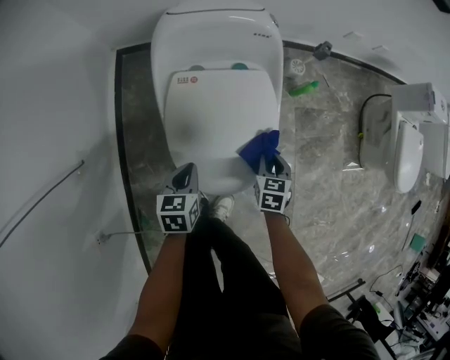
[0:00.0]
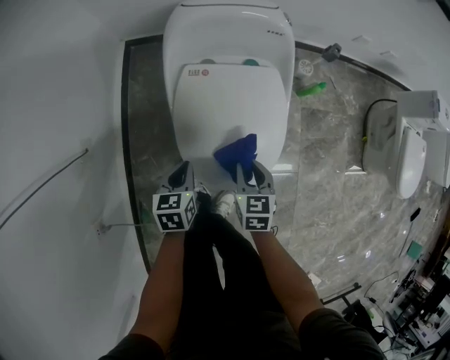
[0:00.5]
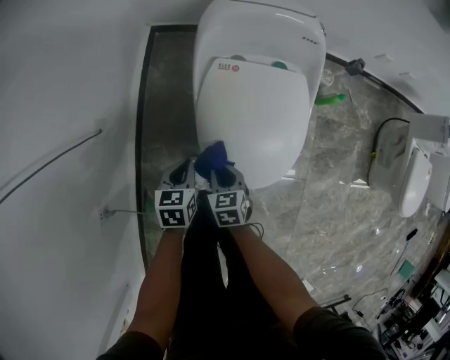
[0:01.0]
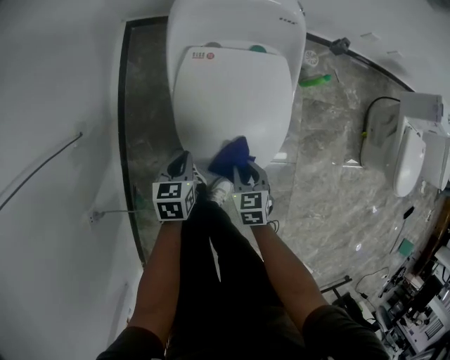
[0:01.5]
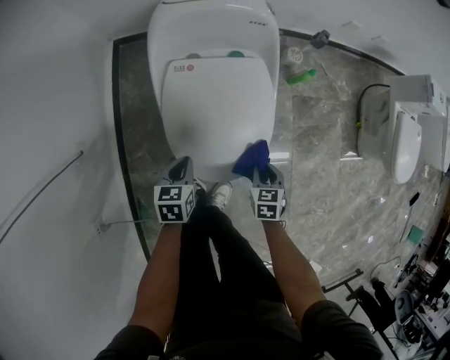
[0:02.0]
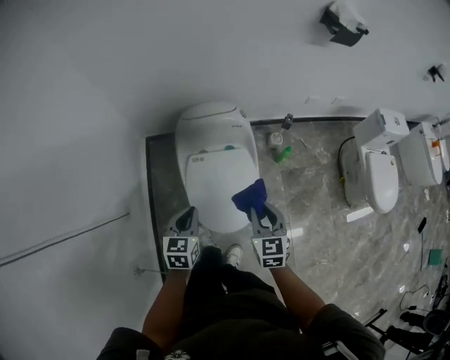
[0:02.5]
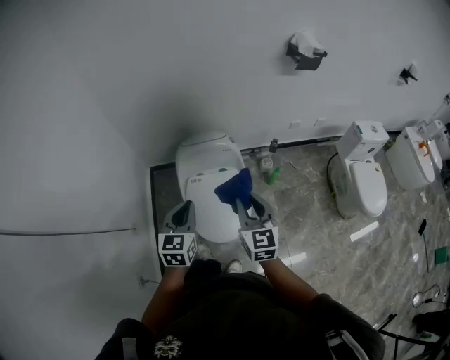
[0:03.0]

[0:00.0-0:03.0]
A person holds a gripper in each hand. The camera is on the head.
0:01.5 to 0:03.0: Both grippers travel together upward, some 50 cm. The left gripper points its fingers roughly 30 degrees further upward. The right gripper tilts its fingers about 40 degrees upward.

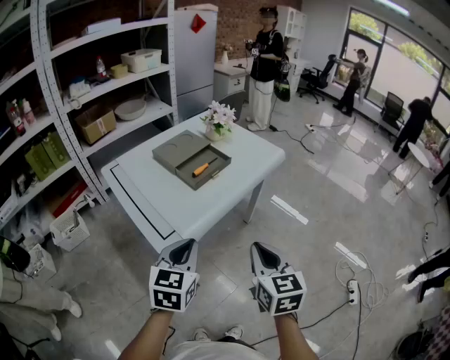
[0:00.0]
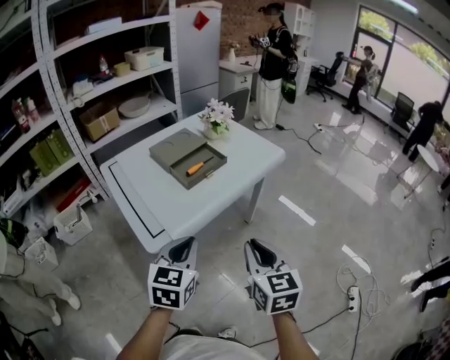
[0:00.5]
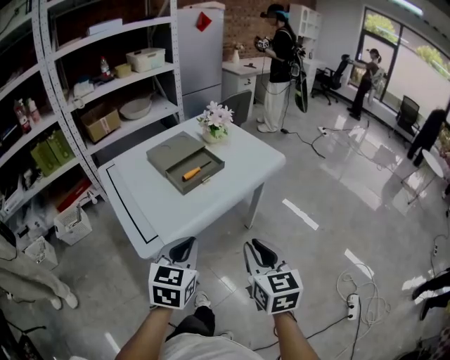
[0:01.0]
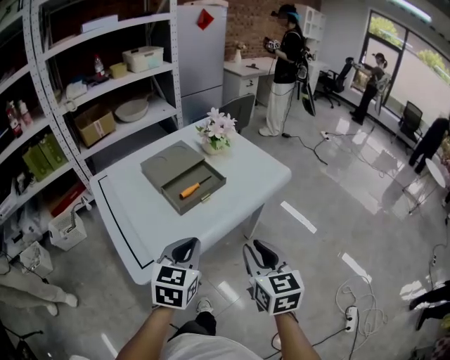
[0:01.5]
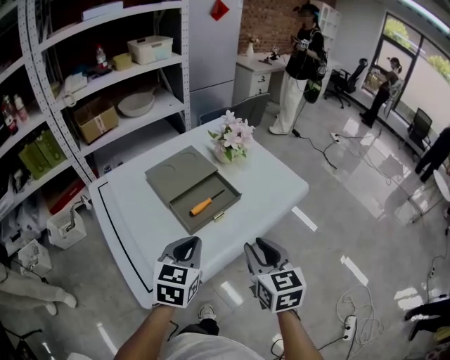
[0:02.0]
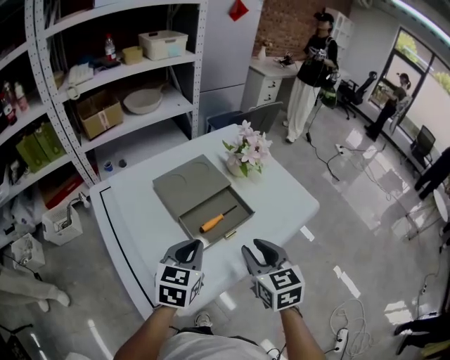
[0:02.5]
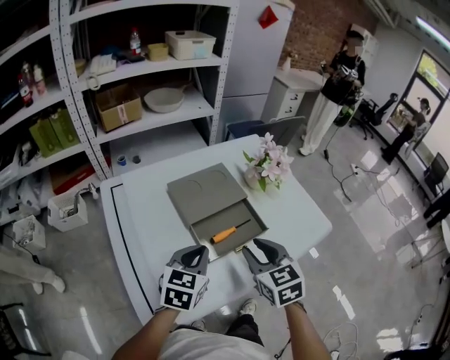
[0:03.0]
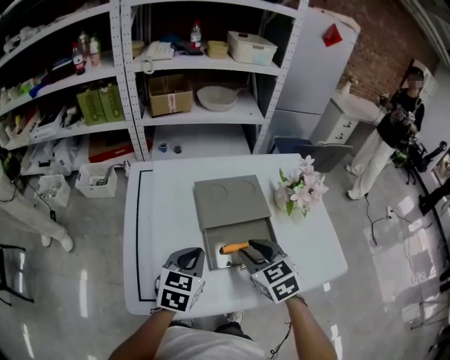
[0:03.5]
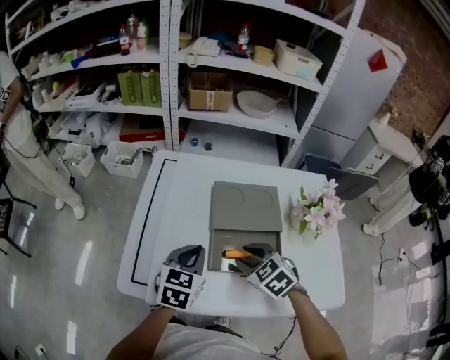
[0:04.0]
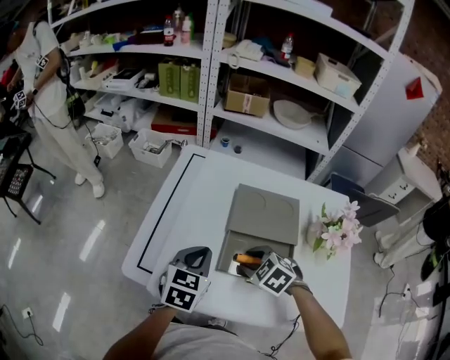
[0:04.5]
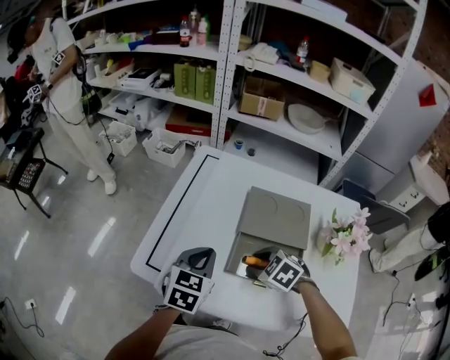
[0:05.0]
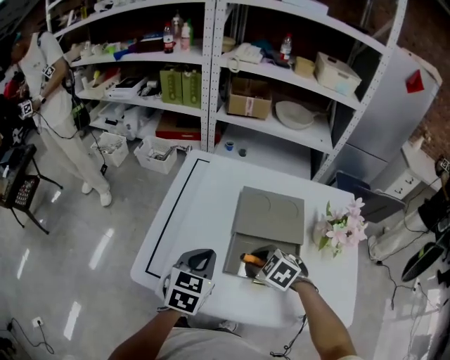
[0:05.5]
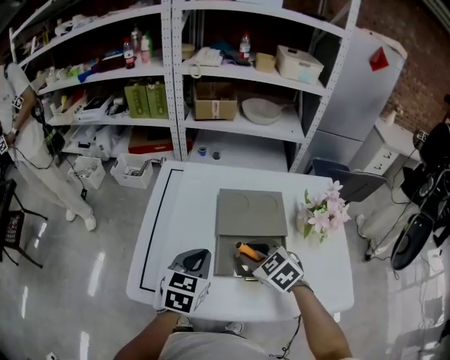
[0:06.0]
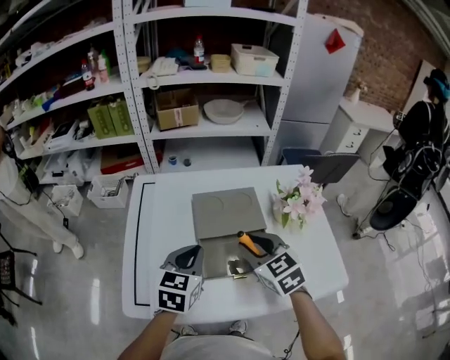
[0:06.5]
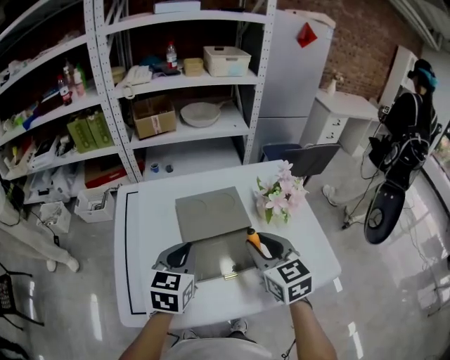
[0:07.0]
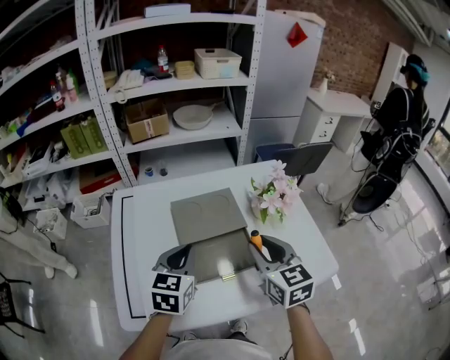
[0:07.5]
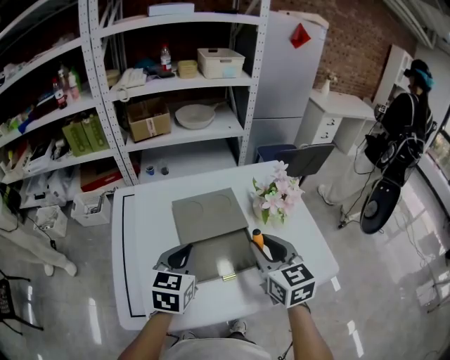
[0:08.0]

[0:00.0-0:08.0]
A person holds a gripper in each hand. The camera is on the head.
0:00.0 to 0:02.0: The grippers both shift forward by some 25 cm. The right gripper opens up.
0:02.0 to 0:04.0: The left gripper moves approximately 15 cm, and changes its angle by about 40 degrees; the right gripper moves roughly 25 cm, and swivels approximately 80 degrees.
0:04.0 to 0:06.0: The right gripper goes downward and returns, approximately 5 cm each way.
0:06.0 to 0:08.0: The left gripper ends up roughly 5 cm from where it was. Meanwhile the right gripper changes place by roughly 15 cm, and changes its angle by roughly 50 degrees.

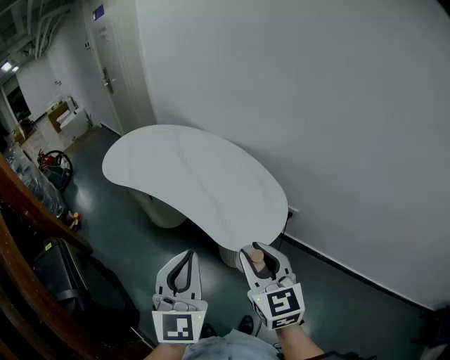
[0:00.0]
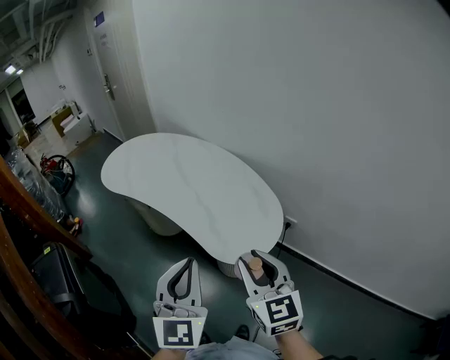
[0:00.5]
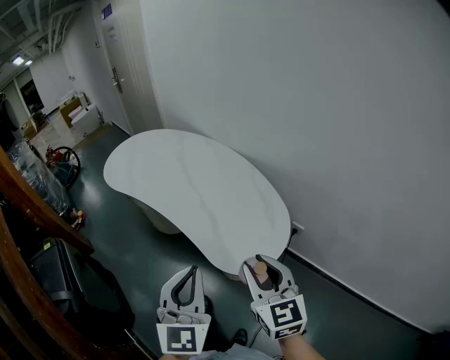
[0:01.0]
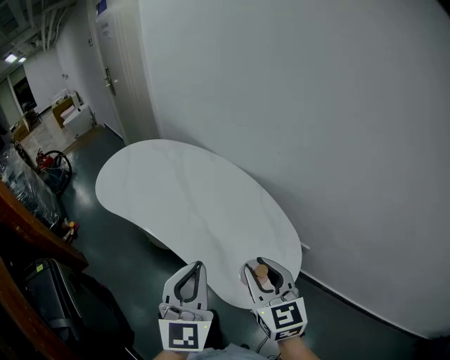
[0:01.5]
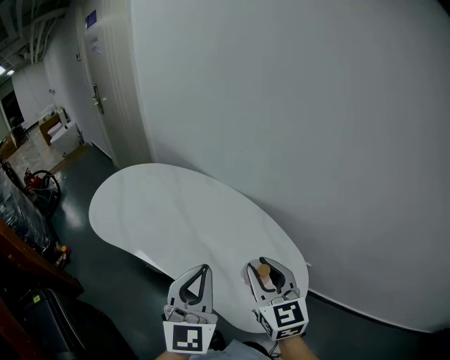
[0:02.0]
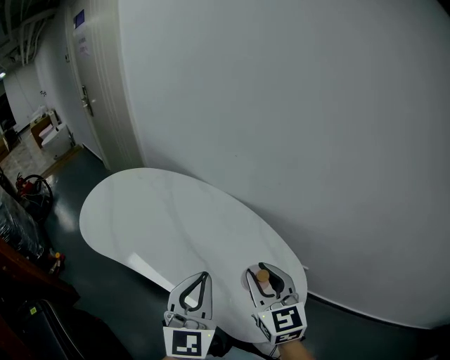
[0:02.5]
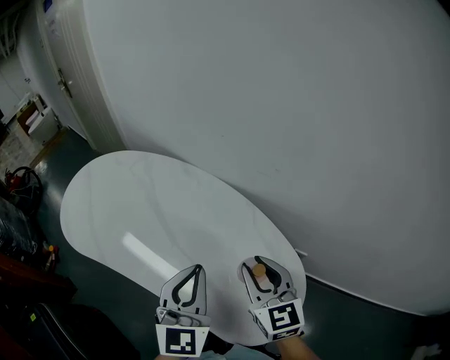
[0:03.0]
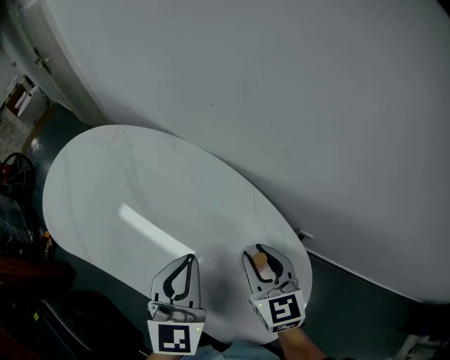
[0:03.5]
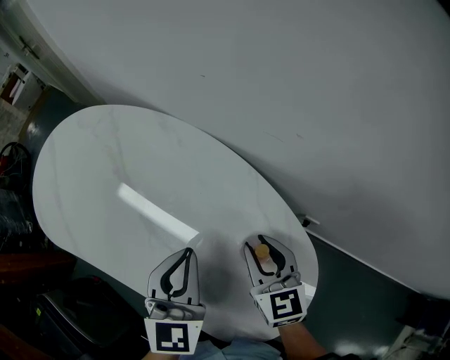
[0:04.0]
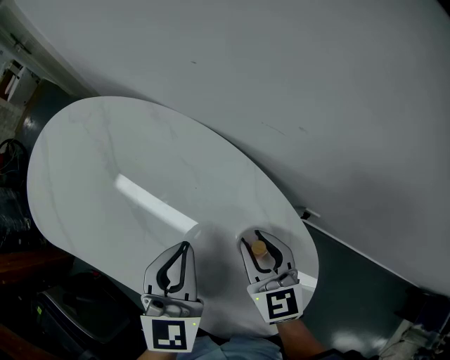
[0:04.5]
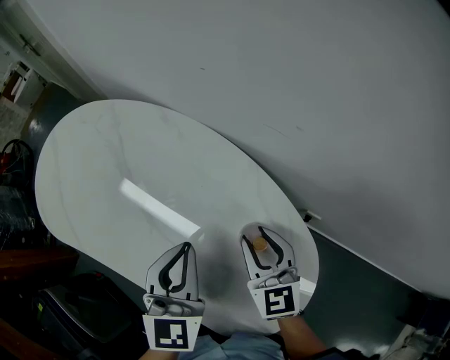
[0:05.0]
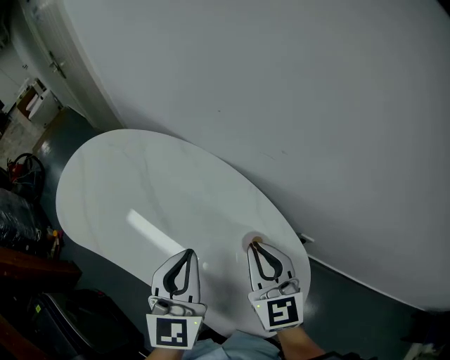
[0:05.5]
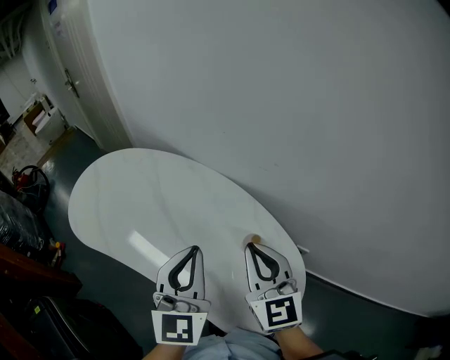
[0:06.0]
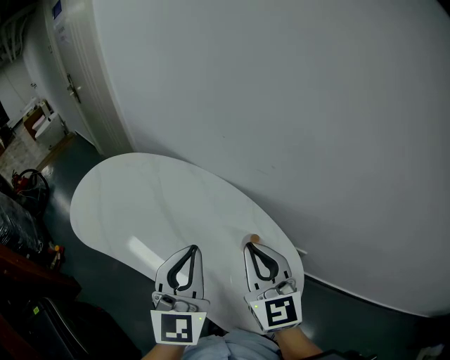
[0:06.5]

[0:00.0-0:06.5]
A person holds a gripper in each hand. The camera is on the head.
0:00.0 to 0:02.0: The two grippers go approximately 20 cm forward.
0:02.0 to 0:04.5: Both grippers move downward and forward, about 15 cm. The left gripper tilts its fingers roughly 30 degrees downward.
0:04.5 to 0:06.5: Both grippers travel together upward, some 15 cm. The left gripper rotates about 30 degrees; the right gripper swivels roughly 20 degrees, and closes.

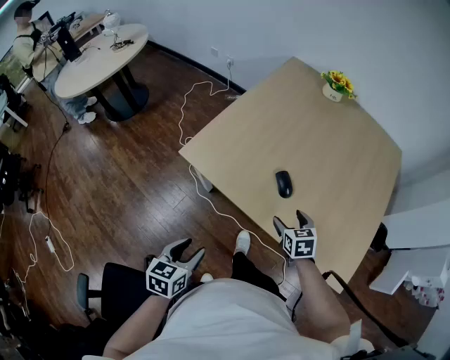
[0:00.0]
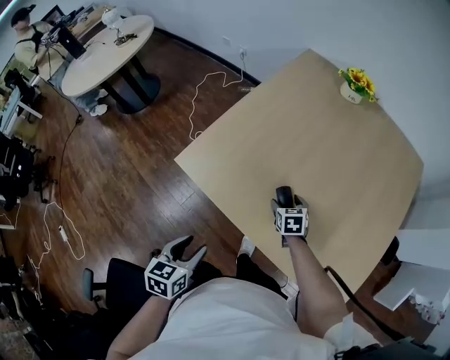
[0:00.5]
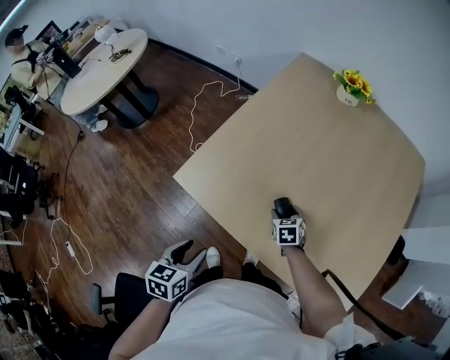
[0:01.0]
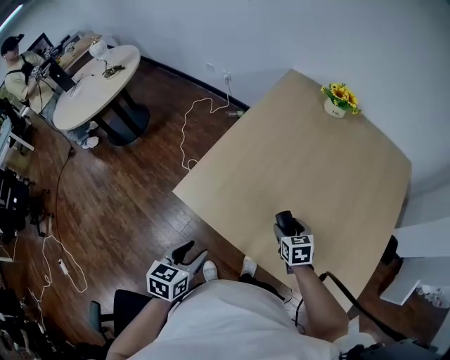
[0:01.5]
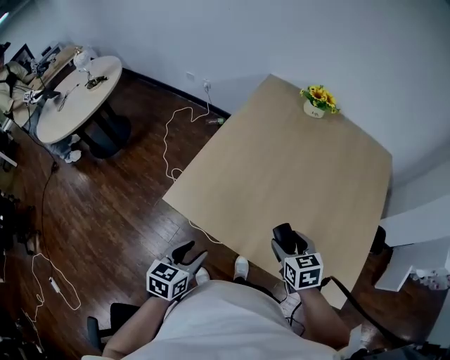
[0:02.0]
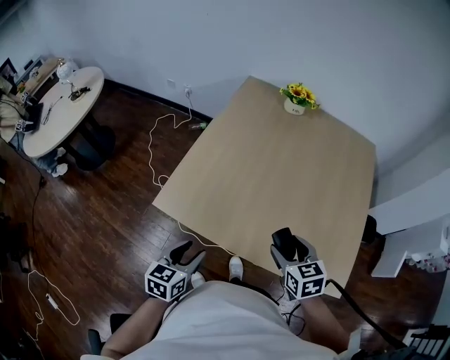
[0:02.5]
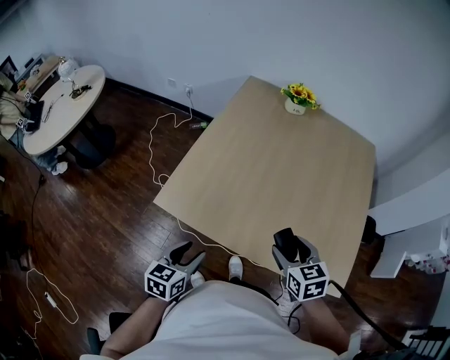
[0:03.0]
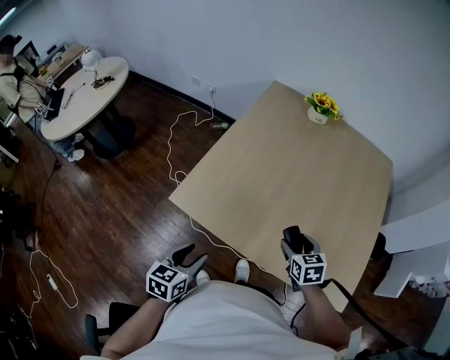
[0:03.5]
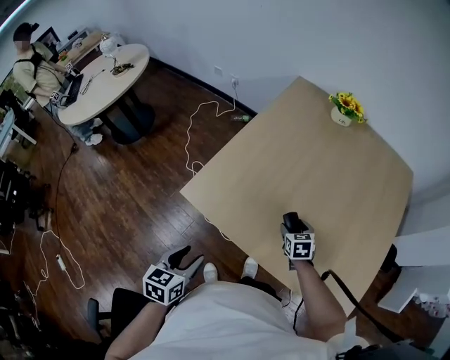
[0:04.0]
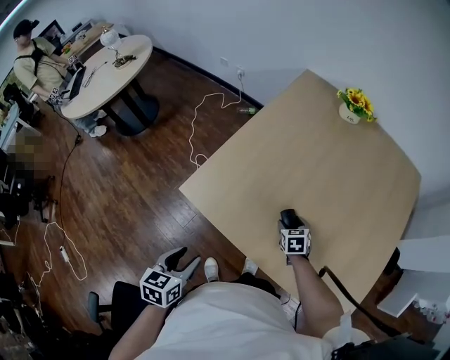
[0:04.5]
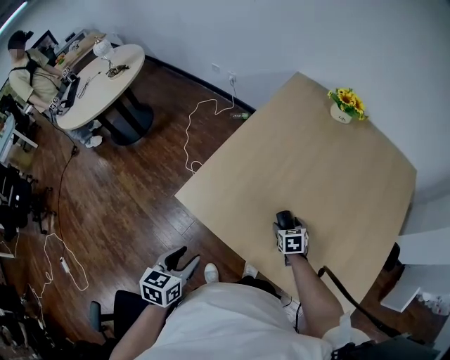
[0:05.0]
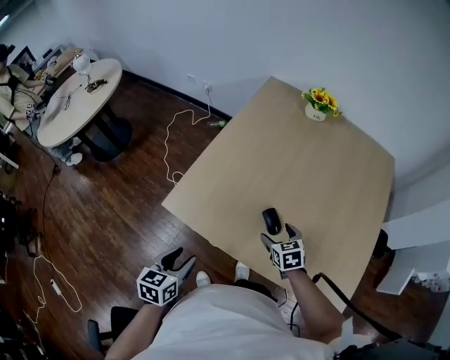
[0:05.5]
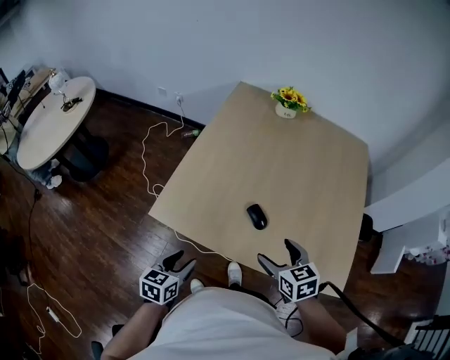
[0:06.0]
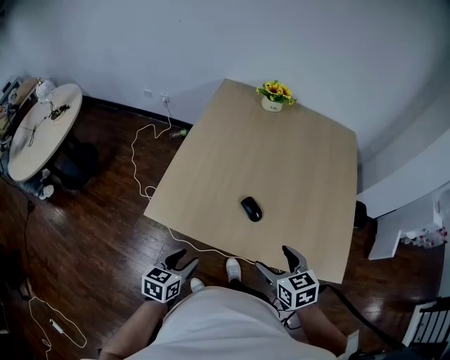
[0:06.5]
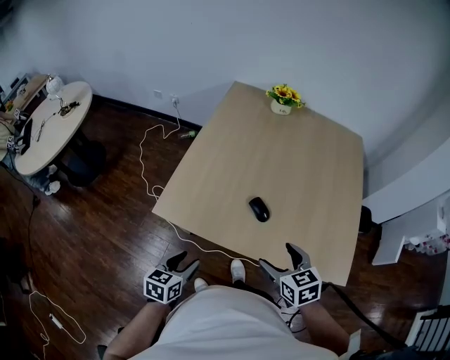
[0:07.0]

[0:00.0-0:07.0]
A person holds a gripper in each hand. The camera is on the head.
0:00.0 to 0:02.0: The right gripper goes about 10 cm upward and forward; the left gripper shifts about 15 cm forward.
0:03.5 to 0:05.0: The right gripper goes approximately 20 cm downward and forward.
0:05.0 to 0:07.0: The left gripper swivels approximately 20 degrees, while the right gripper is displaced upward and backward by about 30 cm.

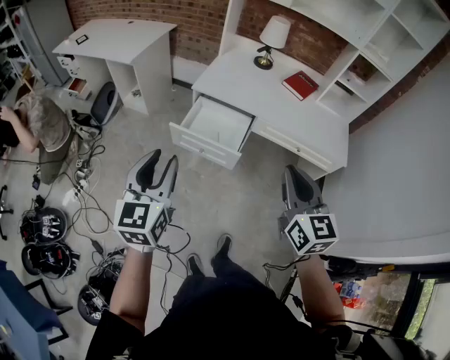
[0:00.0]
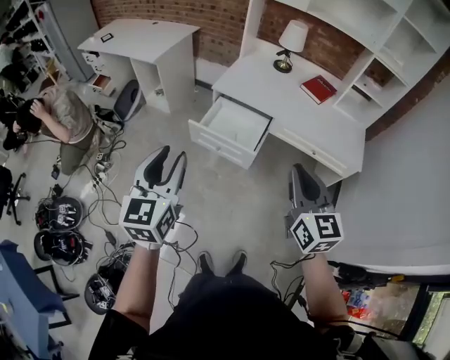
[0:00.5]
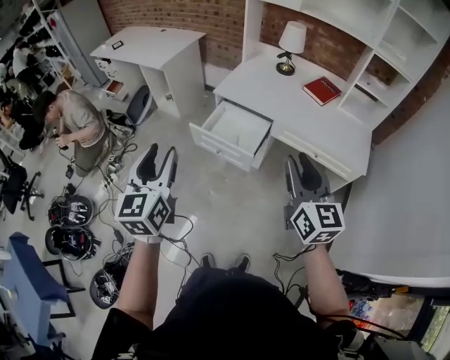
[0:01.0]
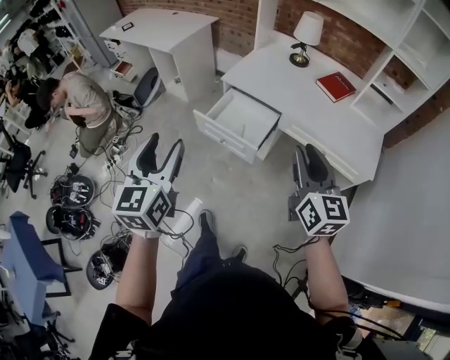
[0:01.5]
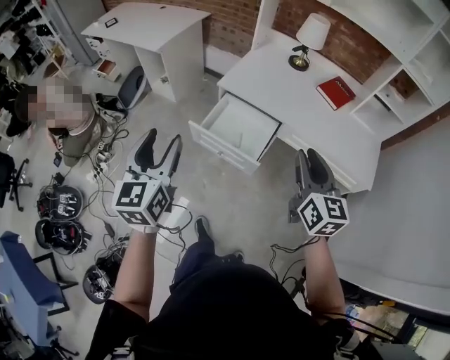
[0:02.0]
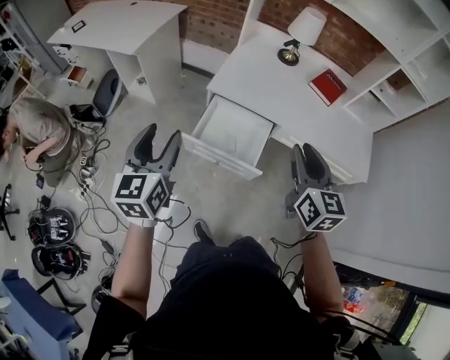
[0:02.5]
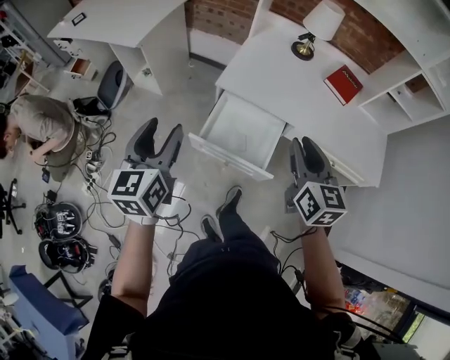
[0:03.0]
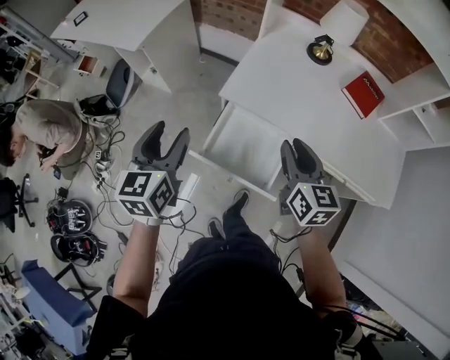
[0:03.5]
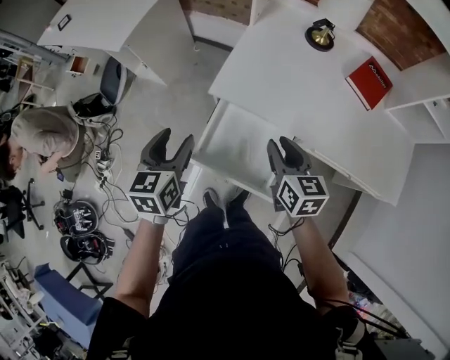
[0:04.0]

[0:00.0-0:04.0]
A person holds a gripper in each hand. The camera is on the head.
0:00.0 to 0:02.0: Both grippers move forward, roughly 15 cm. The right gripper opens its fingers.
0:02.0 to 0:04.0: Both grippers travel together forward and downward, about 40 cm. The left gripper swivels some 30 degrees. Meanwhile the right gripper turns by some 20 degrees.
